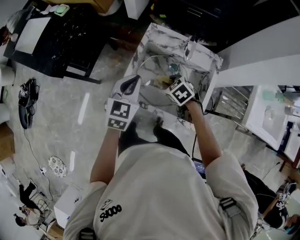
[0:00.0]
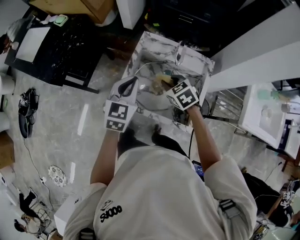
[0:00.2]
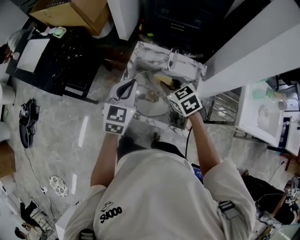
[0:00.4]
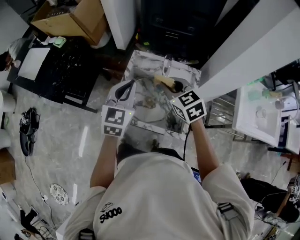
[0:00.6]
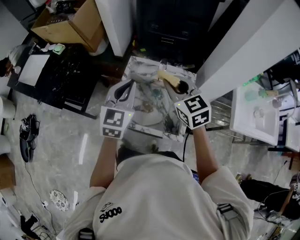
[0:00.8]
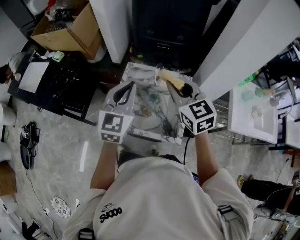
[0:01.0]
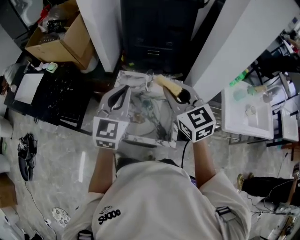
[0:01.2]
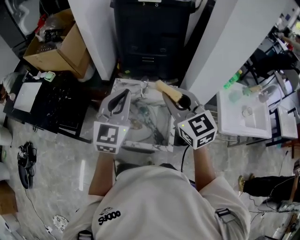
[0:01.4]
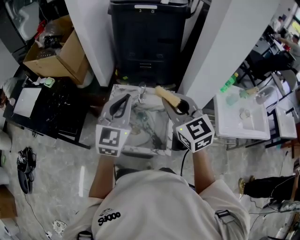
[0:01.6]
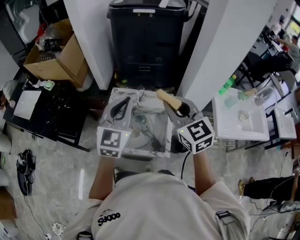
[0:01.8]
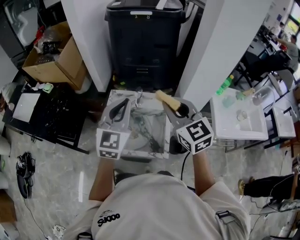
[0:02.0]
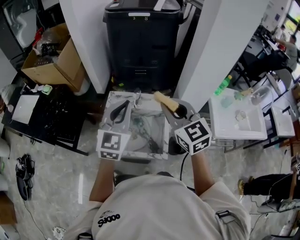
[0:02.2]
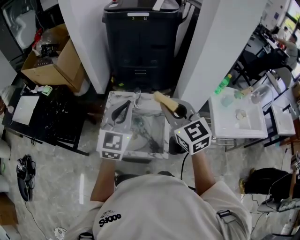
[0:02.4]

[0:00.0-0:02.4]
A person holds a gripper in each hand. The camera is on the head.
0:00.0 to 0:01.2: The left gripper shifts approximately 25 cm upward and to the right, and swivels approximately 30 degrees. The right gripper moves upward, about 35 cm, and angles its fingers upward, by approximately 50 degrees.
0:01.2 to 0:02.4: The left gripper shifts about 5 cm to the right. The right gripper ends up roughly 5 cm from where it was.

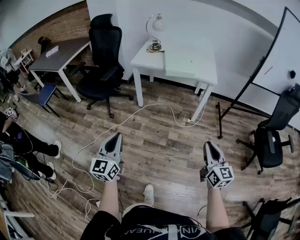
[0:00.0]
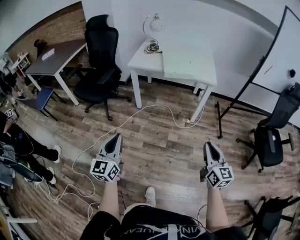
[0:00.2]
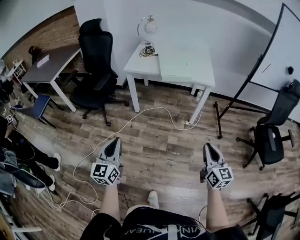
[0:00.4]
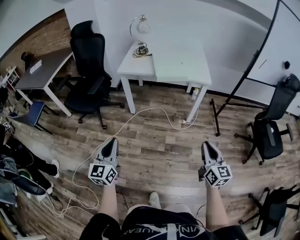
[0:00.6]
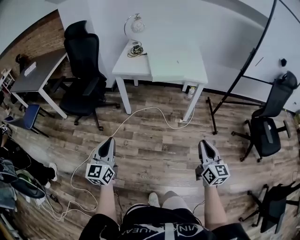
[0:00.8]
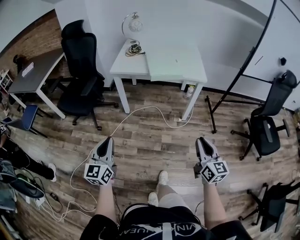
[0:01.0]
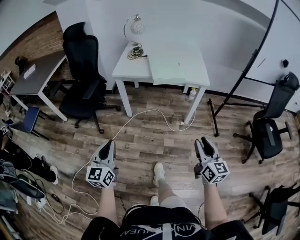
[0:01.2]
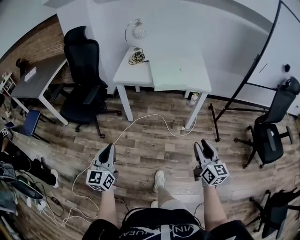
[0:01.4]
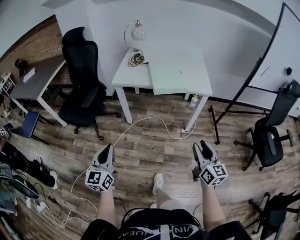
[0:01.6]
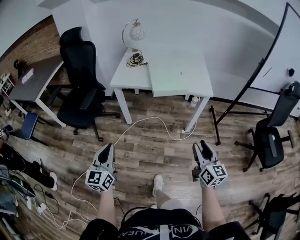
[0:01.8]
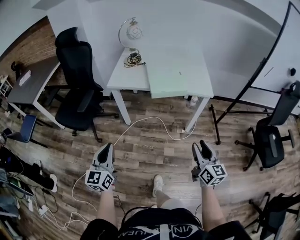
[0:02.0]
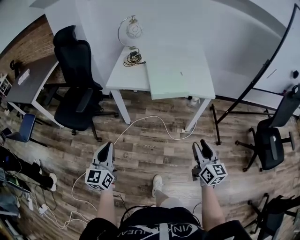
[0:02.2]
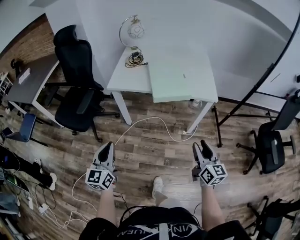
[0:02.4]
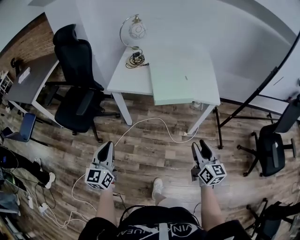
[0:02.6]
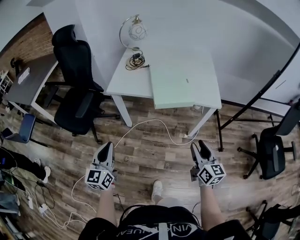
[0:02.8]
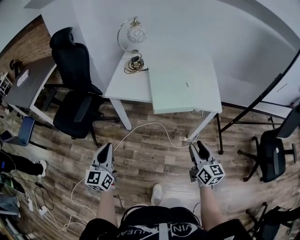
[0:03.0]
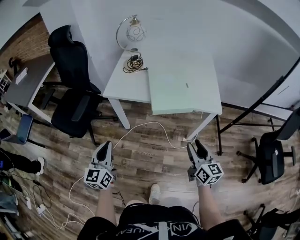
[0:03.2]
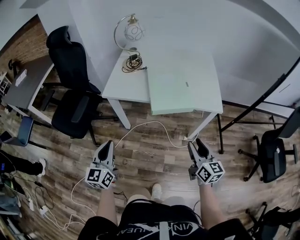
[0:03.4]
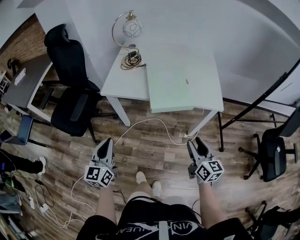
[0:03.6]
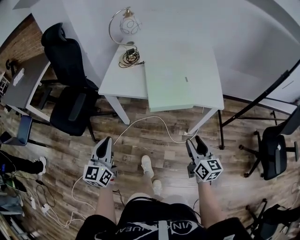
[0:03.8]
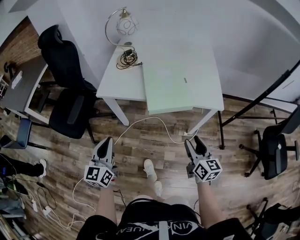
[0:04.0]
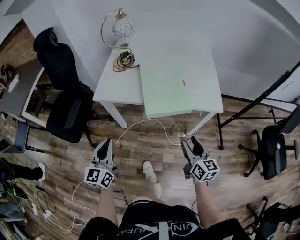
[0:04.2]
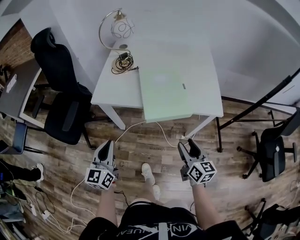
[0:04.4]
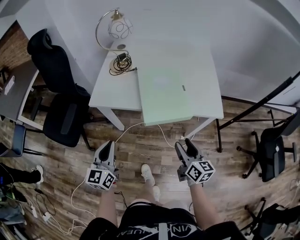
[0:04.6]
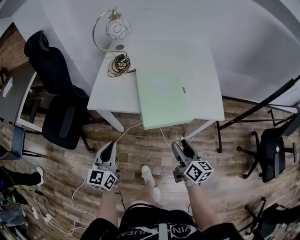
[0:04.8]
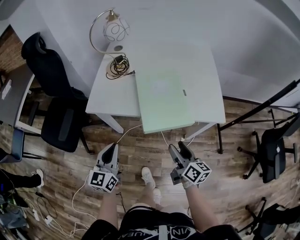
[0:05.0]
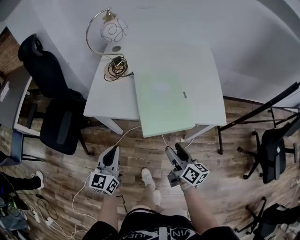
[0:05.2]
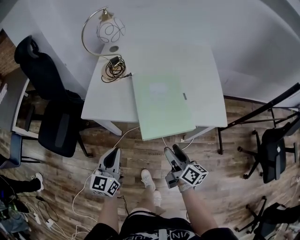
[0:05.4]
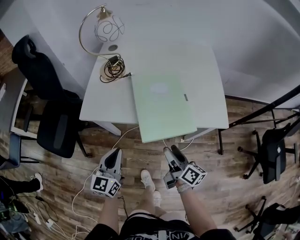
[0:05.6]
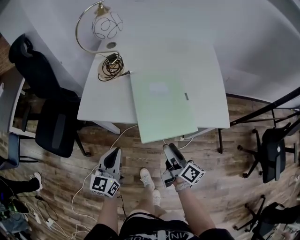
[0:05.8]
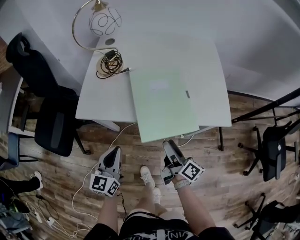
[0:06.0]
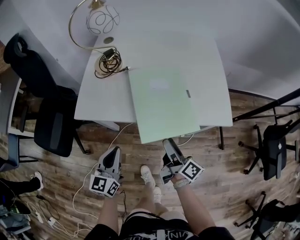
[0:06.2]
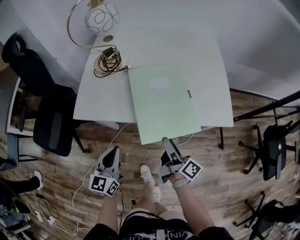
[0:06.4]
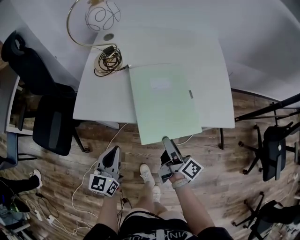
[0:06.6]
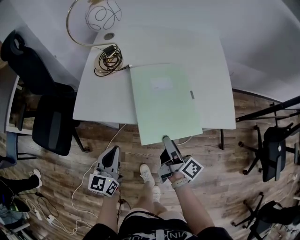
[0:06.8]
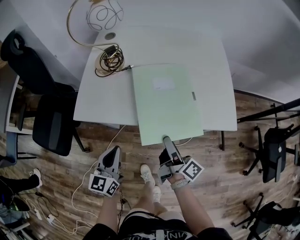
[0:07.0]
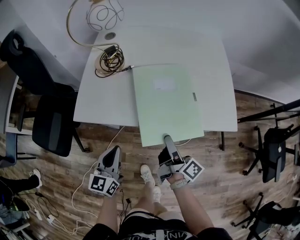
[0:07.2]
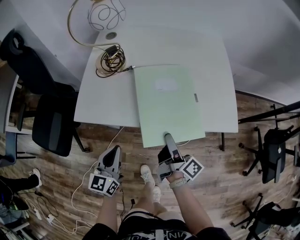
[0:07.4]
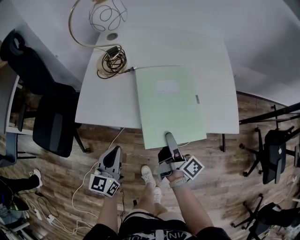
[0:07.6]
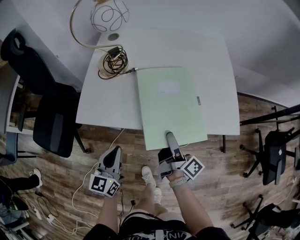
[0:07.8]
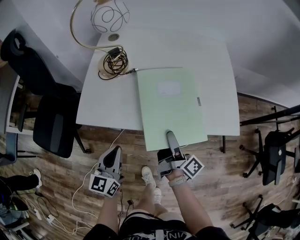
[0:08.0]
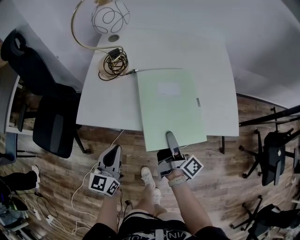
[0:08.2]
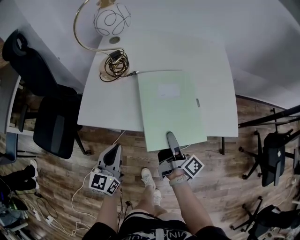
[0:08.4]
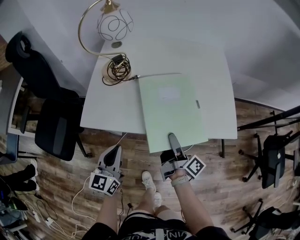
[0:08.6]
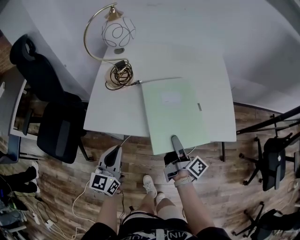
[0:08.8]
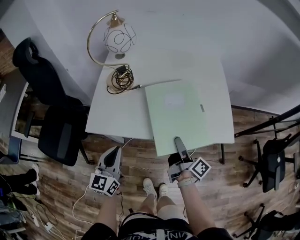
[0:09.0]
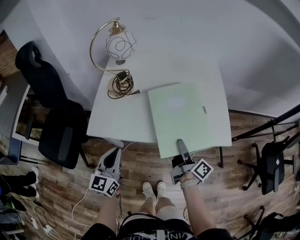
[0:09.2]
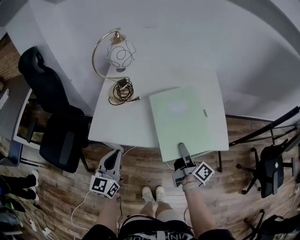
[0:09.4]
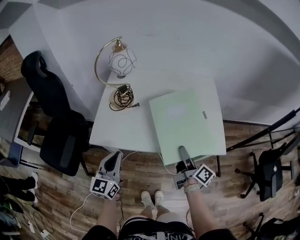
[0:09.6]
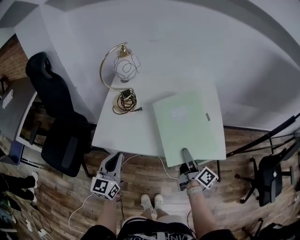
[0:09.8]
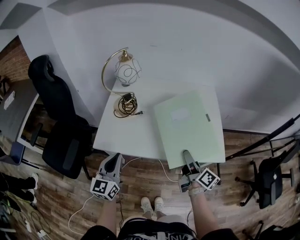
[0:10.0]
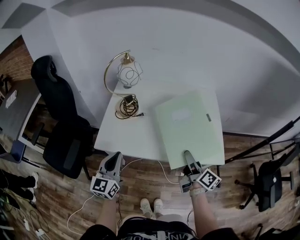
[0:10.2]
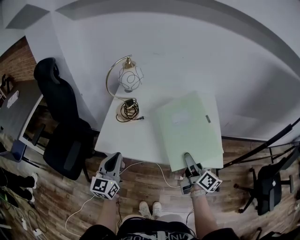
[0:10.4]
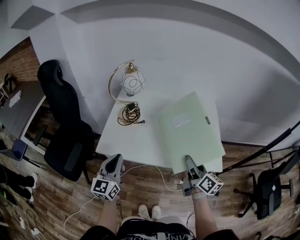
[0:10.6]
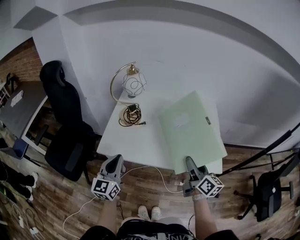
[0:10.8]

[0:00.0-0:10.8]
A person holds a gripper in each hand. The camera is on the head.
0:00.0 to 0:01.6: Both grippers travel together forward, roughly 20 cm.
0:01.6 to 0:03.0: The two grippers go some 20 cm forward.
0:03.0 to 0:04.6: The left gripper travels forward and to the right by some 15 cm, while the right gripper is displaced forward and downward by some 15 cm.
0:04.6 to 0:06.2: The left gripper is displaced forward and downward by about 10 cm; the right gripper shifts roughly 15 cm forward and to the left, and swivels approximately 40 degrees.
0:06.2 to 0:07.8: The right gripper heads forward, covering some 5 cm.
0:07.8 to 0:09.2: The left gripper moves upward, about 5 cm, while the right gripper shifts about 5 cm to the right.
0:09.2 to 0:10.8: The two grippers go some 10 cm upward. The right gripper turns by approximately 30 degrees.

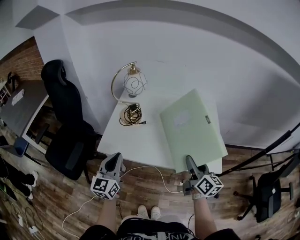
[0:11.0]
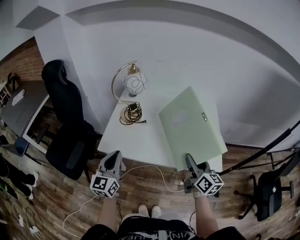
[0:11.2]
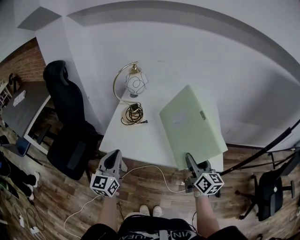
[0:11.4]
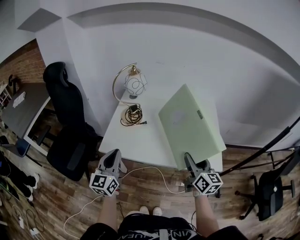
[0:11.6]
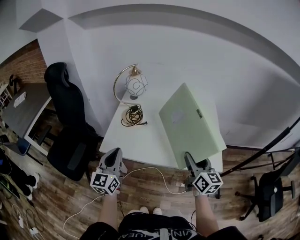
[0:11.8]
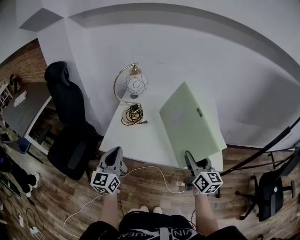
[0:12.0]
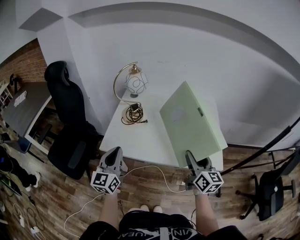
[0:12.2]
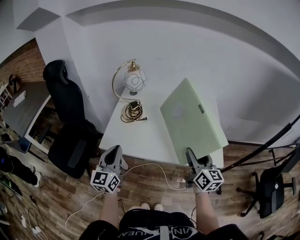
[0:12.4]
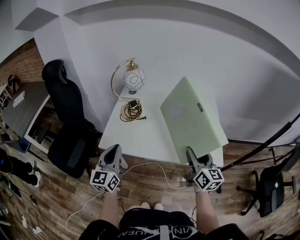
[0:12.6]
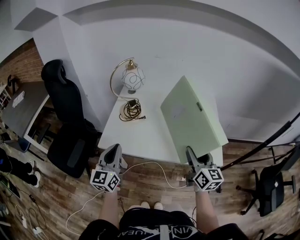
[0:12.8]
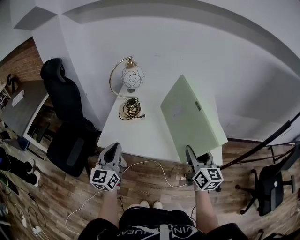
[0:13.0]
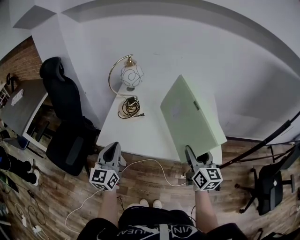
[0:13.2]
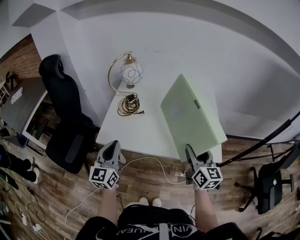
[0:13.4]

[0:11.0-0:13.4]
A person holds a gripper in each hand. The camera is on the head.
0:11.0 to 0:12.2: There are only small adjustments of the grippers.
0:12.2 to 0:13.4: The grippers stay close to where they were, moving slightly.

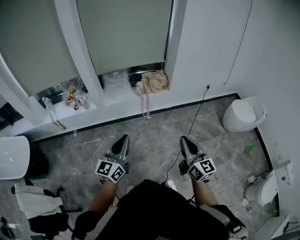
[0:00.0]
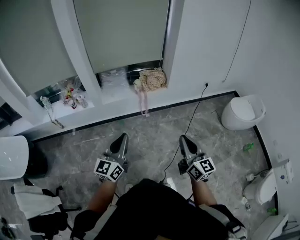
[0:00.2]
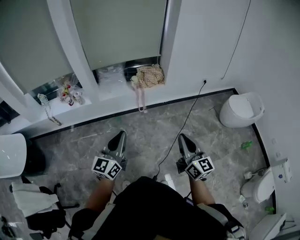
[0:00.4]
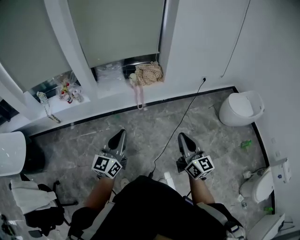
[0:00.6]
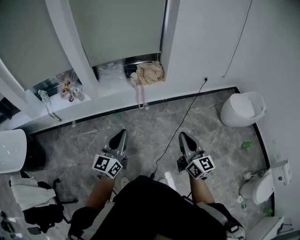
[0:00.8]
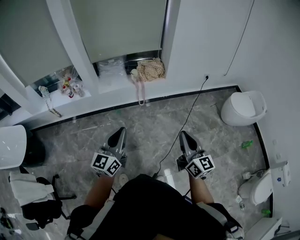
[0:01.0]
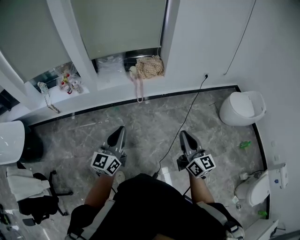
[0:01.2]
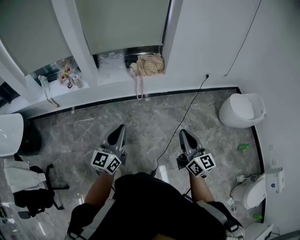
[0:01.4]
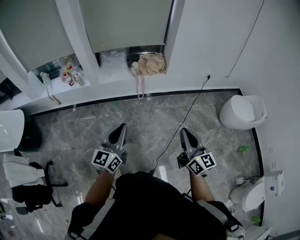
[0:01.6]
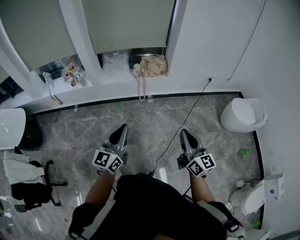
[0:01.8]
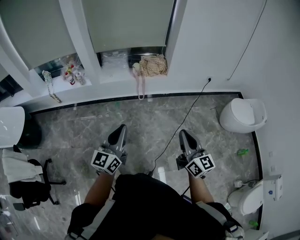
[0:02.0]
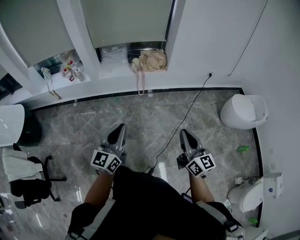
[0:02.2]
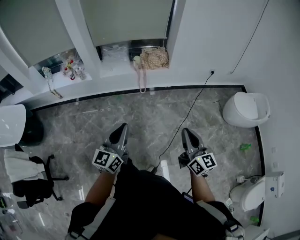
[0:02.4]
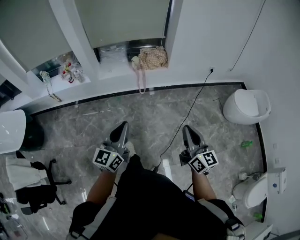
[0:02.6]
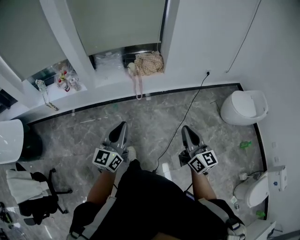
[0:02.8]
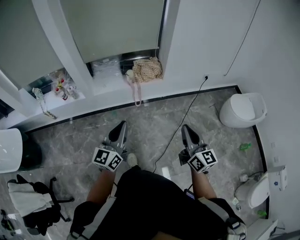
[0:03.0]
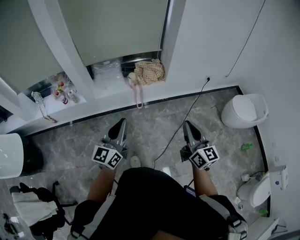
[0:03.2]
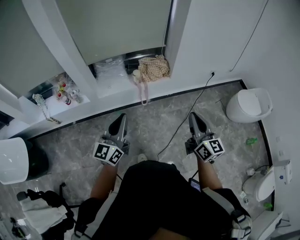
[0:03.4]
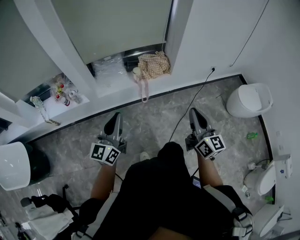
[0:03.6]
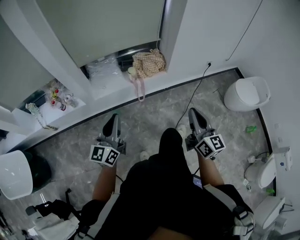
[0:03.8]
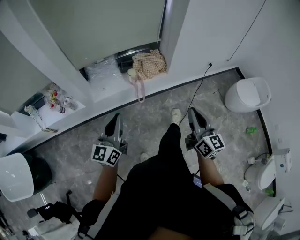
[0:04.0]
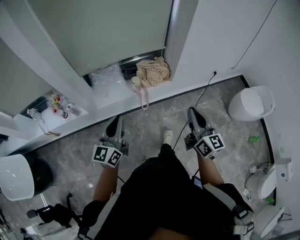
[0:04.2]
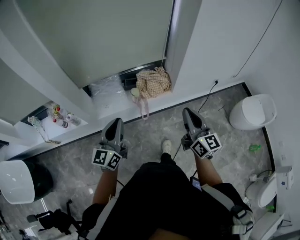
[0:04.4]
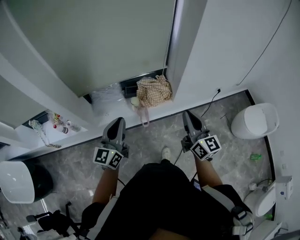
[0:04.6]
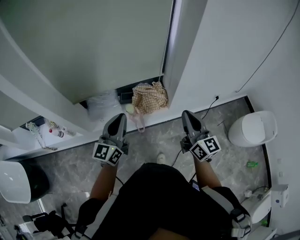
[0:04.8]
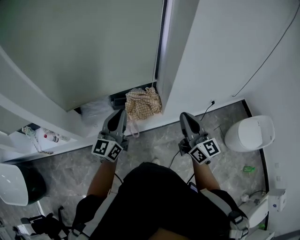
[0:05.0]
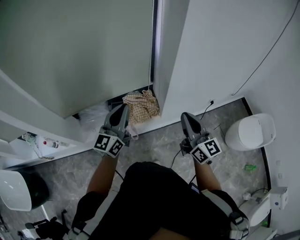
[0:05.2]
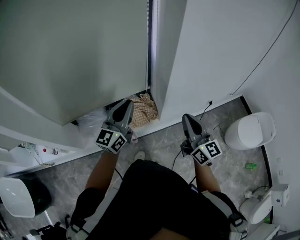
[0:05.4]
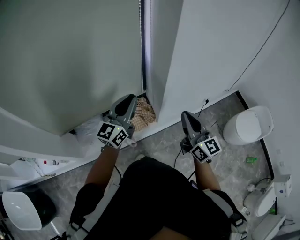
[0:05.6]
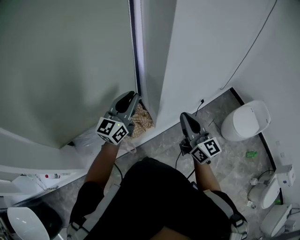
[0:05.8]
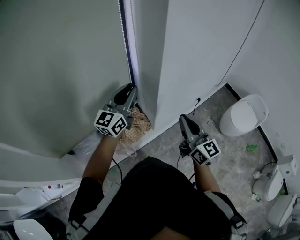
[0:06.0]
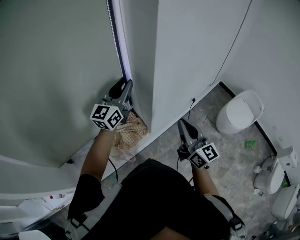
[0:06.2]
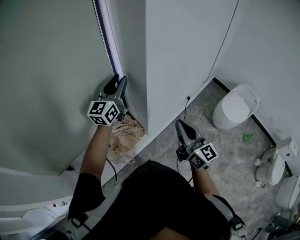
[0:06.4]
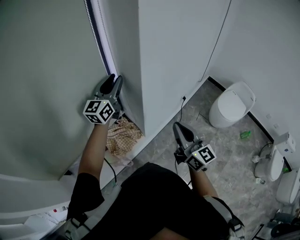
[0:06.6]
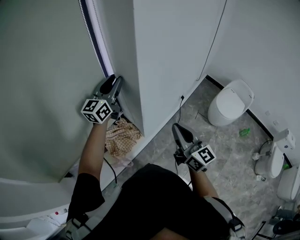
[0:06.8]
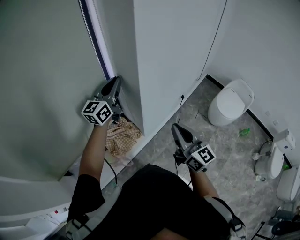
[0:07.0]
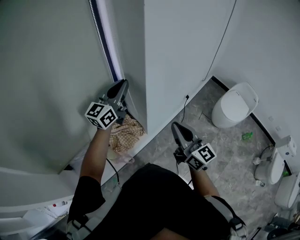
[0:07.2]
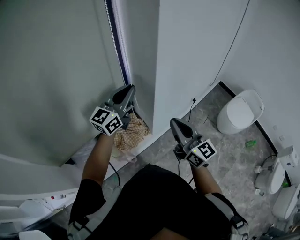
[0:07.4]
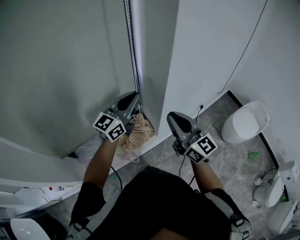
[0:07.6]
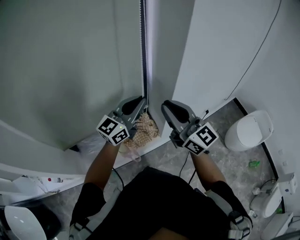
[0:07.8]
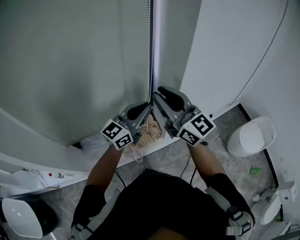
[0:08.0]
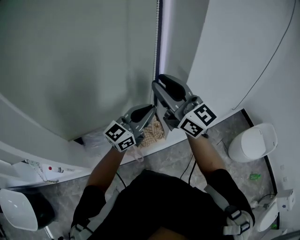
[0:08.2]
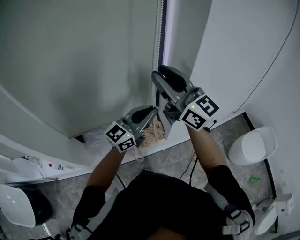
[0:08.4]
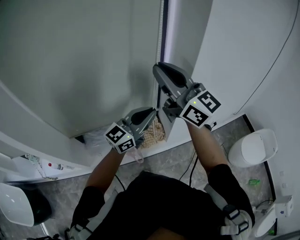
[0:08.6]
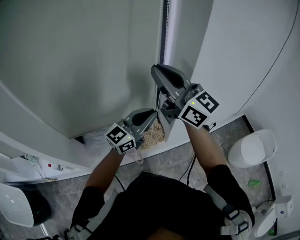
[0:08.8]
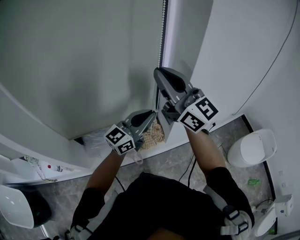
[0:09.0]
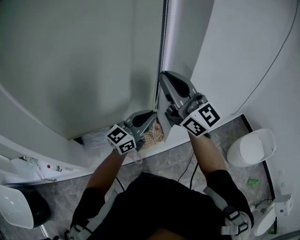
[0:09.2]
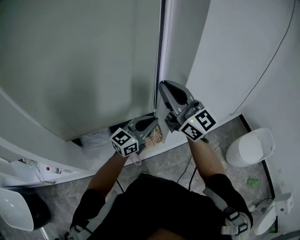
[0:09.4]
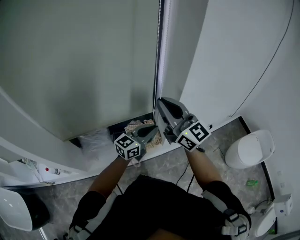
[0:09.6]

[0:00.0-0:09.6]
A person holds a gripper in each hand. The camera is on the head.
0:00.0 to 0:01.6: Both grippers move to the right, some 10 cm.
0:01.6 to 0:03.2: The two grippers go some 15 cm forward.
0:03.2 to 0:04.8: The two grippers go some 35 cm forward.
0:04.8 to 0:06.4: The right gripper changes place by about 15 cm, and rotates about 20 degrees. The left gripper moves some 40 cm, changes its angle by approximately 30 degrees, and opens up.
0:06.4 to 0:08.0: The left gripper is displaced backward by about 15 cm, and closes up, while the right gripper moves to the left and upward, approximately 25 cm, and turns by roughly 30 degrees.
0:08.0 to 0:09.6: The left gripper shifts approximately 10 cm downward, while the right gripper moves roughly 10 cm upward and comes back.
